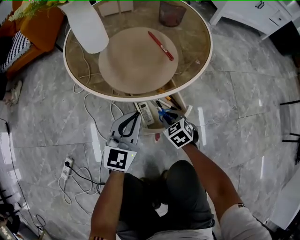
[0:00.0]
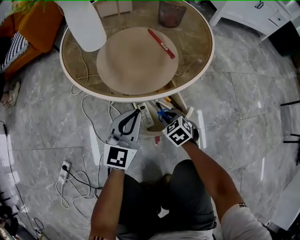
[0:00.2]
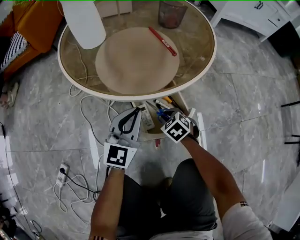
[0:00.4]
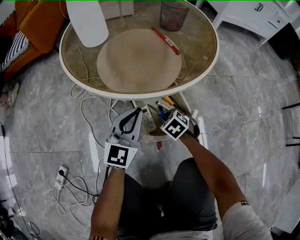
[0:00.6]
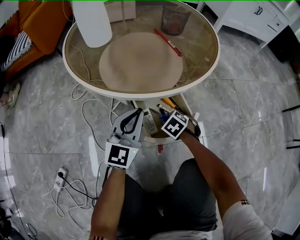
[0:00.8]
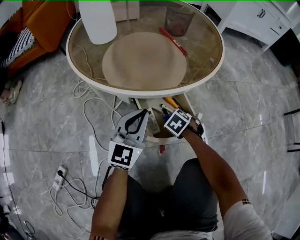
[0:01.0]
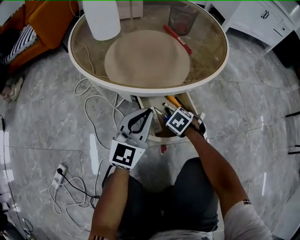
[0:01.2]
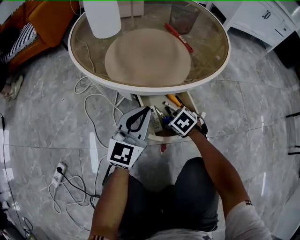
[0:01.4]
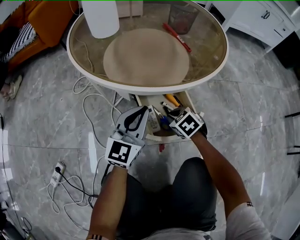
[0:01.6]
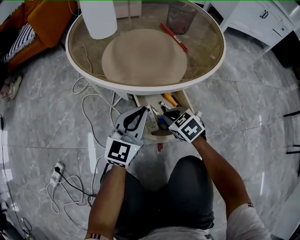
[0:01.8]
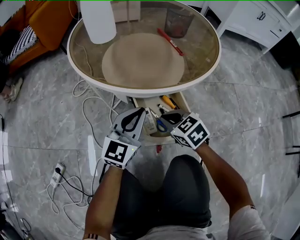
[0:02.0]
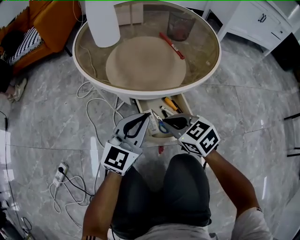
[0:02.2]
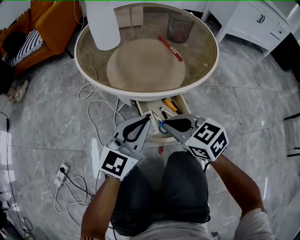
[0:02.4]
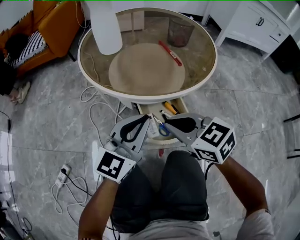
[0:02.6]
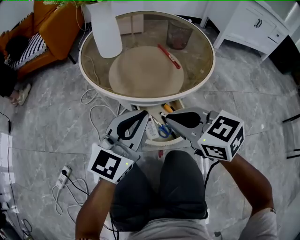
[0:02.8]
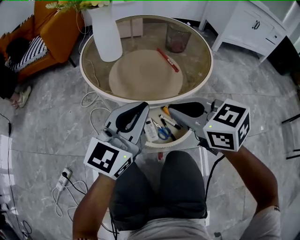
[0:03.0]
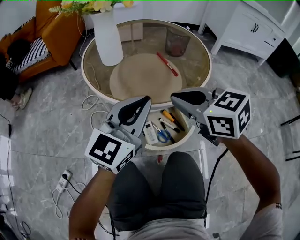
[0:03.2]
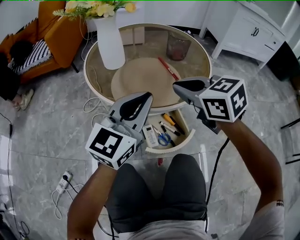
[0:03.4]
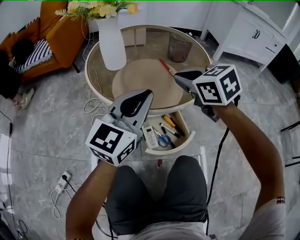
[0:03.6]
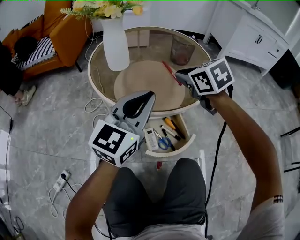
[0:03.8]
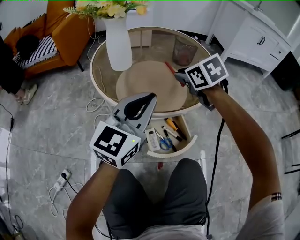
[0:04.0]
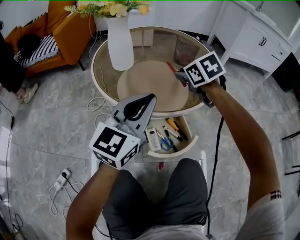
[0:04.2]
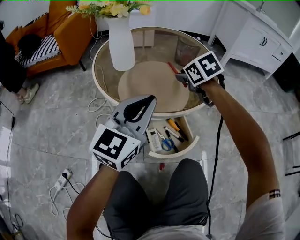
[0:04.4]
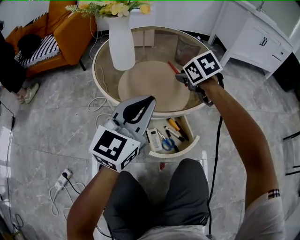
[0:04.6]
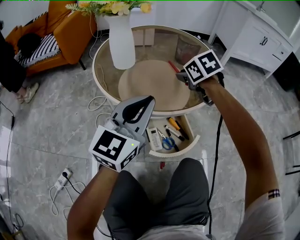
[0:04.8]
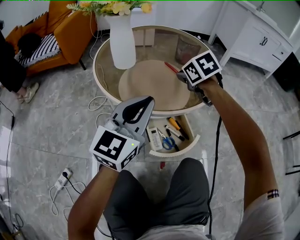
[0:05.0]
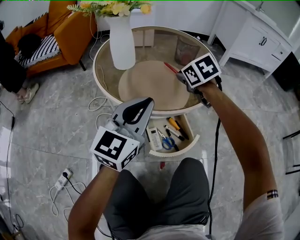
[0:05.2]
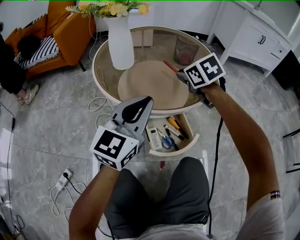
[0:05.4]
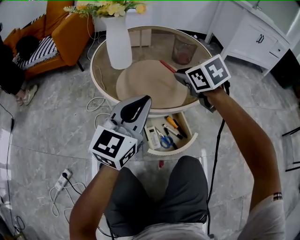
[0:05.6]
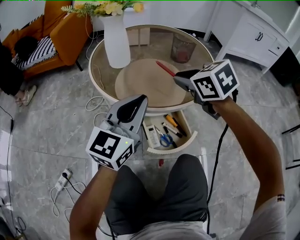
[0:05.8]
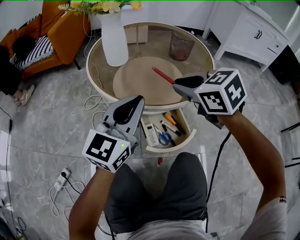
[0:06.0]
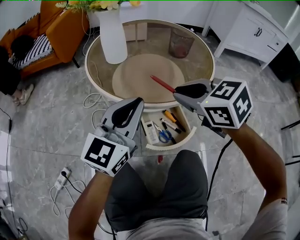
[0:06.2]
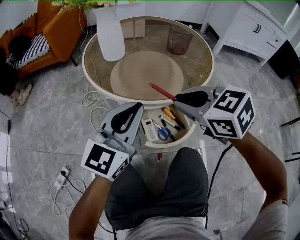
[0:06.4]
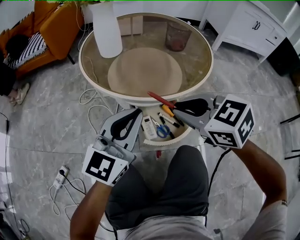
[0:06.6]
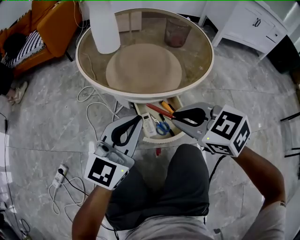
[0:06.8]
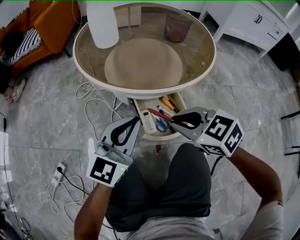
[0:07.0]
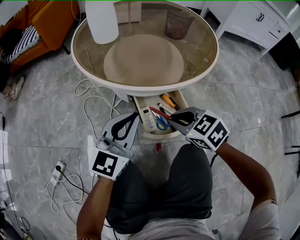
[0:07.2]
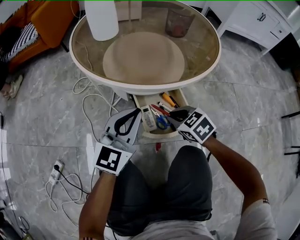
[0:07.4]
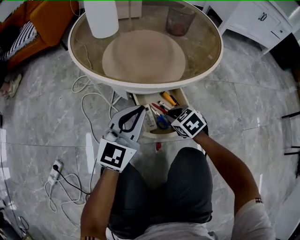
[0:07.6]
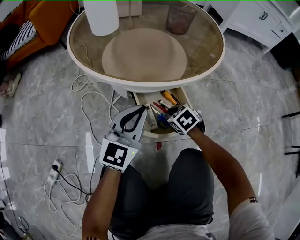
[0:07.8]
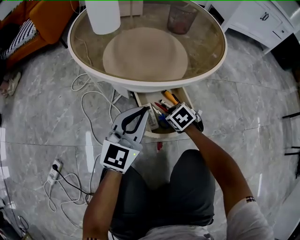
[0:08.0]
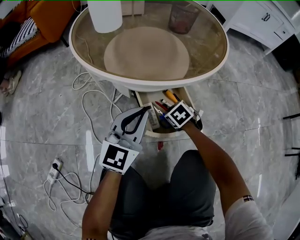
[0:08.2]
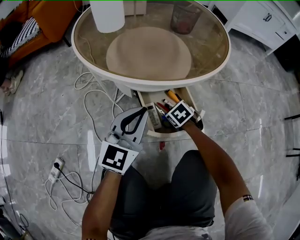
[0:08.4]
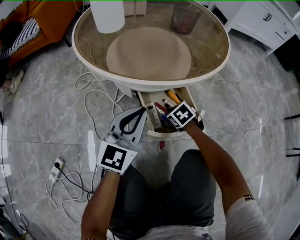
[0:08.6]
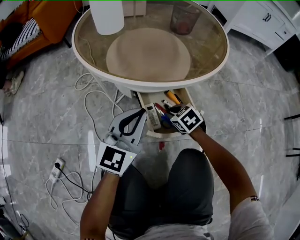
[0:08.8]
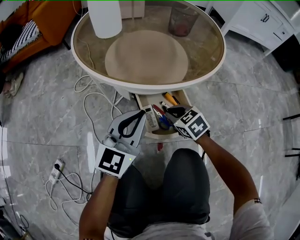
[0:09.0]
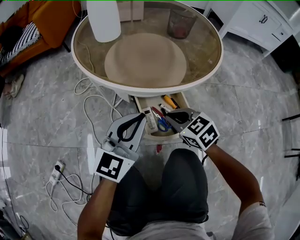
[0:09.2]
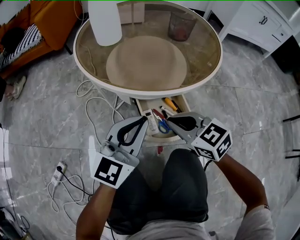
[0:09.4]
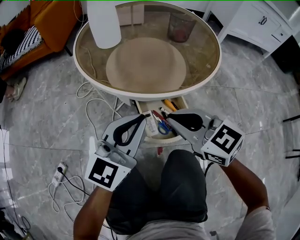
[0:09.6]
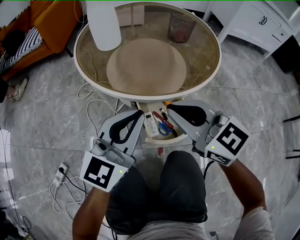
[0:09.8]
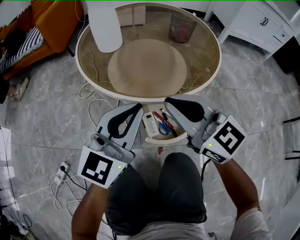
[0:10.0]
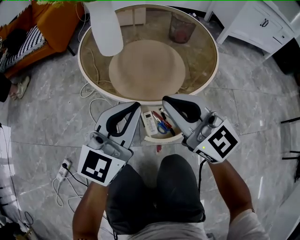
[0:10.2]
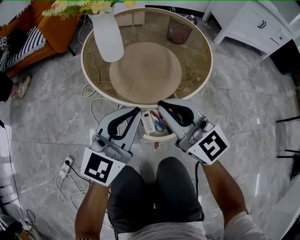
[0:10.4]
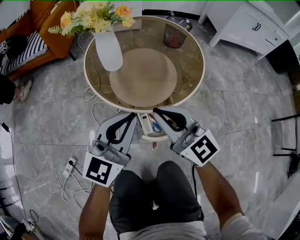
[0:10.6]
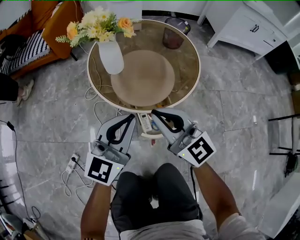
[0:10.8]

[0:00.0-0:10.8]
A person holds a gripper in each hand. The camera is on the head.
0:00.0 to 0:01.6: Both grippers travel together downward, about 5 cm.
0:01.6 to 0:03.0: The left gripper shifts about 20 cm upward. Meanwhile the right gripper goes some 35 cm upward, and tips its fingers upward by about 30 degrees.
0:03.0 to 0:04.6: The right gripper is displaced forward by about 20 cm, swivels some 30 degrees, and opens its fingers.
0:04.6 to 0:06.2: The right gripper is displaced backward and upward by approximately 20 cm, and turns by roughly 20 degrees.
0:06.2 to 0:07.8: The left gripper heads downward, covering roughly 20 cm, while the right gripper is displaced downward by about 35 cm, and turns by about 30 degrees.
0:07.8 to 0:09.2: The left gripper ends up some 5 cm from where it was, while the right gripper travels upward by some 15 cm, and turns by approximately 20 degrees.
0:09.2 to 0:10.8: The grippers both shift upward by approximately 30 cm. The right gripper points its fingers approximately 40 degrees further upward.

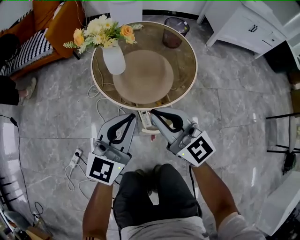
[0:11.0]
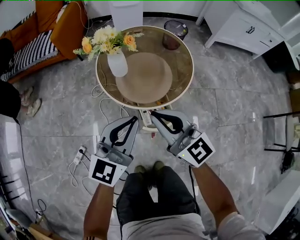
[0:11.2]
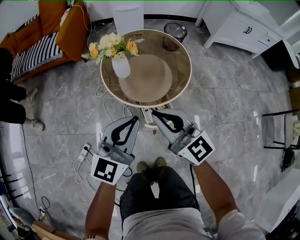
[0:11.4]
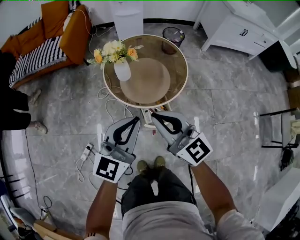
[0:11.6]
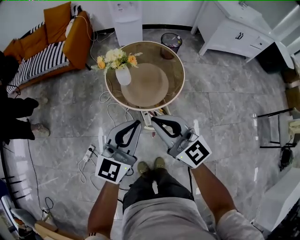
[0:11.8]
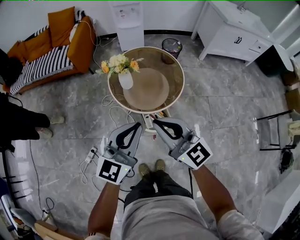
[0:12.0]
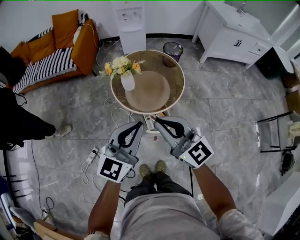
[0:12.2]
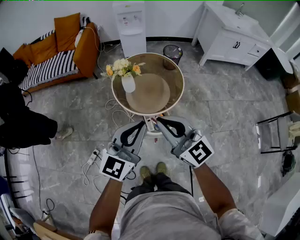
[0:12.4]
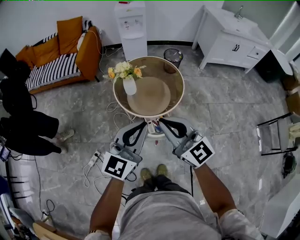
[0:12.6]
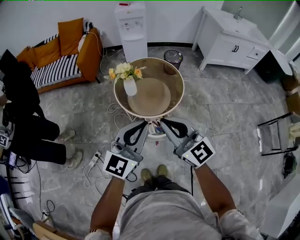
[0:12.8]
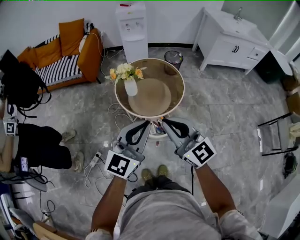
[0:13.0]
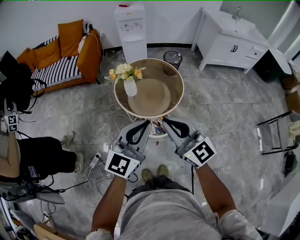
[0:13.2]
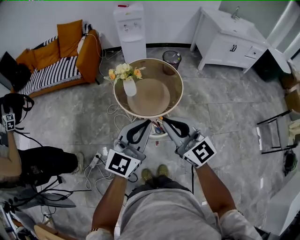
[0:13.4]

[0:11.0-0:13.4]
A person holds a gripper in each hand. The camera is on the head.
0:11.0 to 0:12.2: The grippers both shift upward by approximately 25 cm.
0:12.2 to 0:13.4: The left gripper changes place by approximately 5 cm.

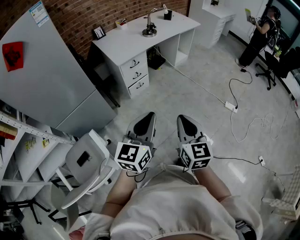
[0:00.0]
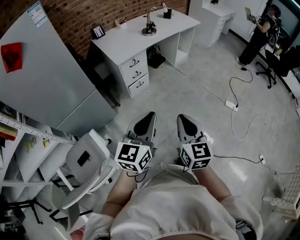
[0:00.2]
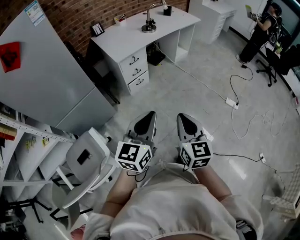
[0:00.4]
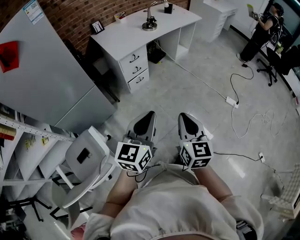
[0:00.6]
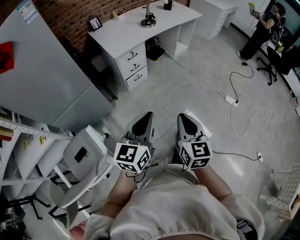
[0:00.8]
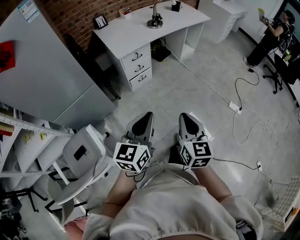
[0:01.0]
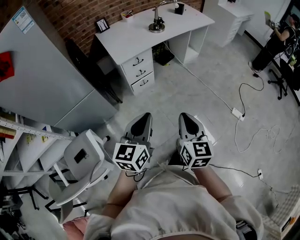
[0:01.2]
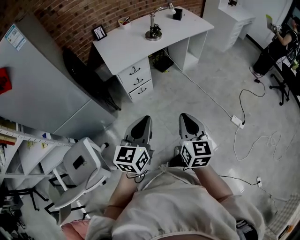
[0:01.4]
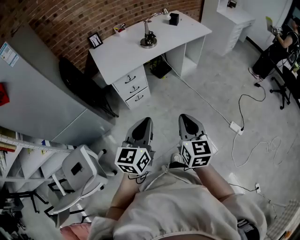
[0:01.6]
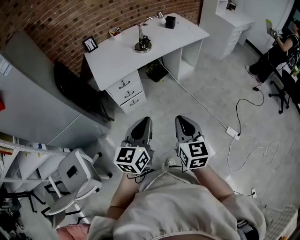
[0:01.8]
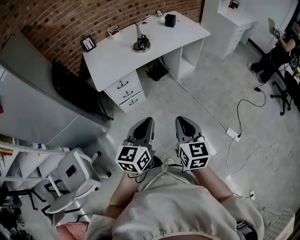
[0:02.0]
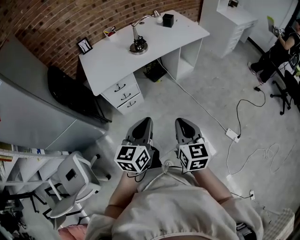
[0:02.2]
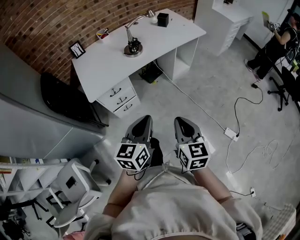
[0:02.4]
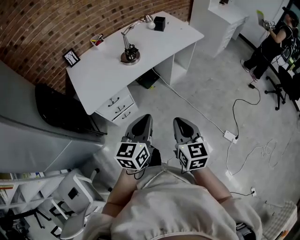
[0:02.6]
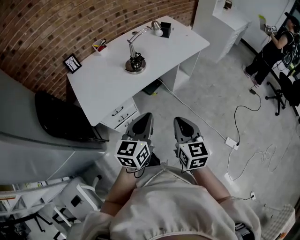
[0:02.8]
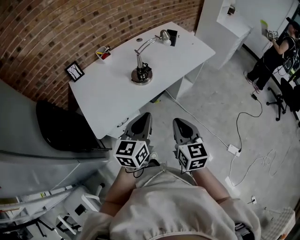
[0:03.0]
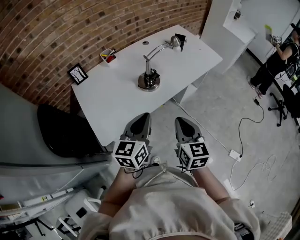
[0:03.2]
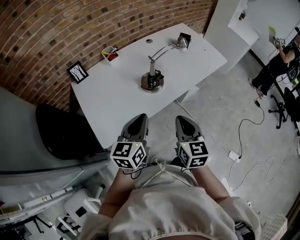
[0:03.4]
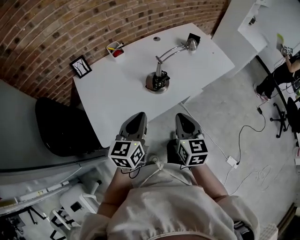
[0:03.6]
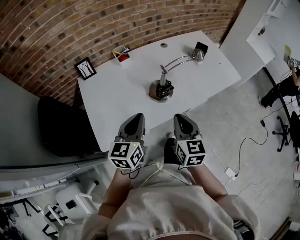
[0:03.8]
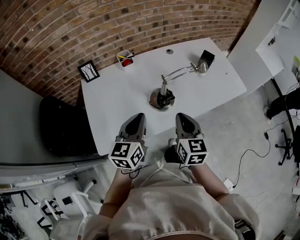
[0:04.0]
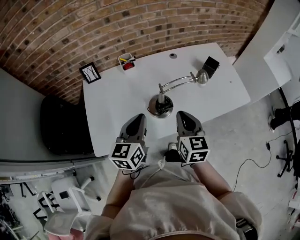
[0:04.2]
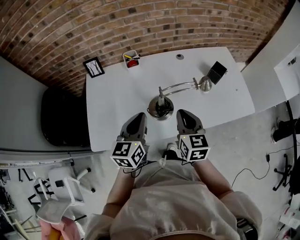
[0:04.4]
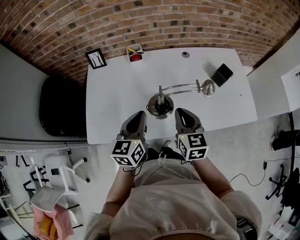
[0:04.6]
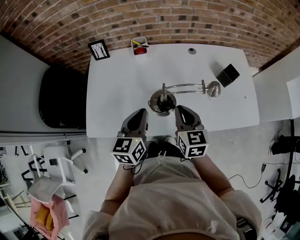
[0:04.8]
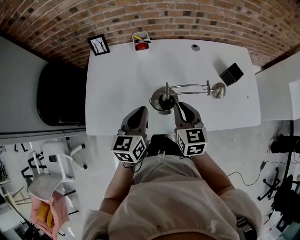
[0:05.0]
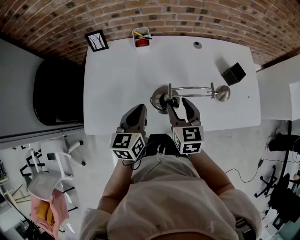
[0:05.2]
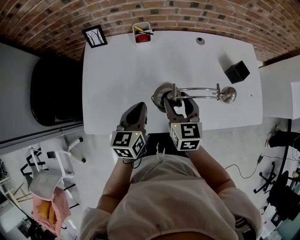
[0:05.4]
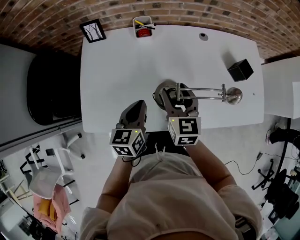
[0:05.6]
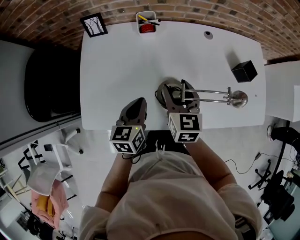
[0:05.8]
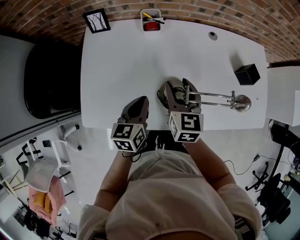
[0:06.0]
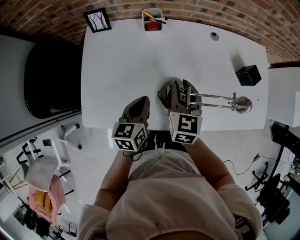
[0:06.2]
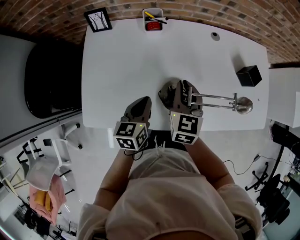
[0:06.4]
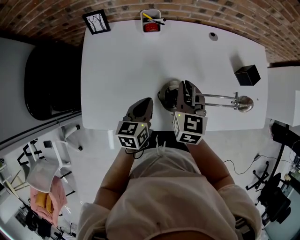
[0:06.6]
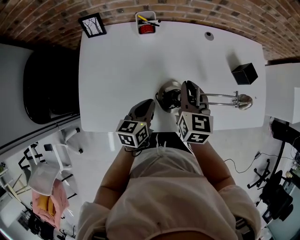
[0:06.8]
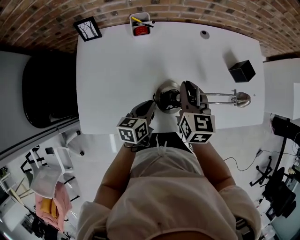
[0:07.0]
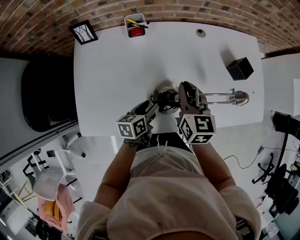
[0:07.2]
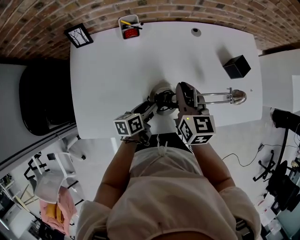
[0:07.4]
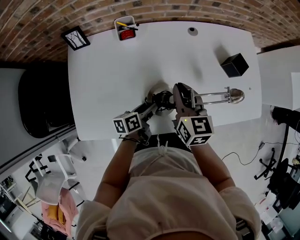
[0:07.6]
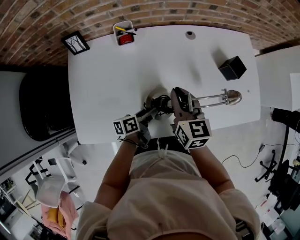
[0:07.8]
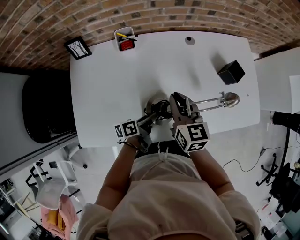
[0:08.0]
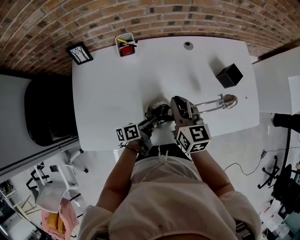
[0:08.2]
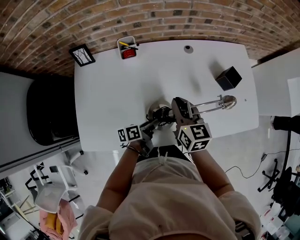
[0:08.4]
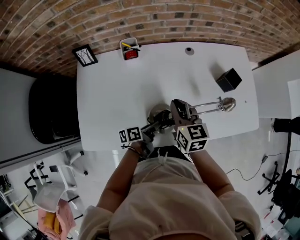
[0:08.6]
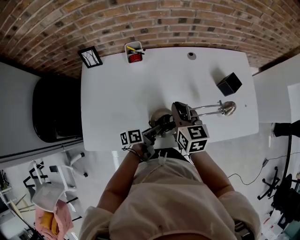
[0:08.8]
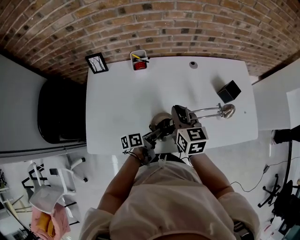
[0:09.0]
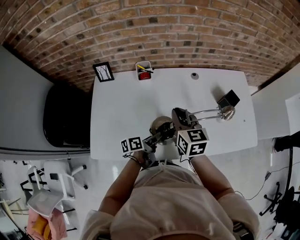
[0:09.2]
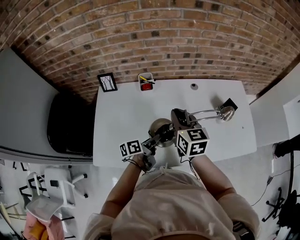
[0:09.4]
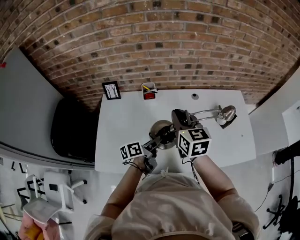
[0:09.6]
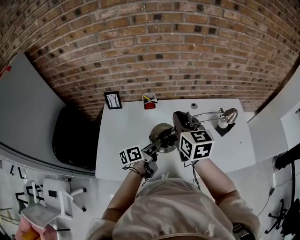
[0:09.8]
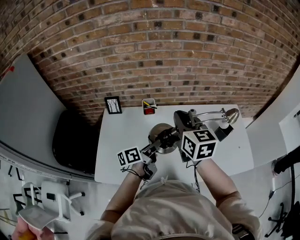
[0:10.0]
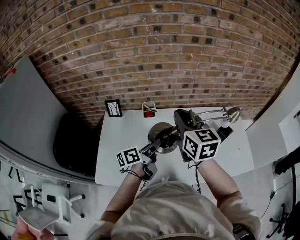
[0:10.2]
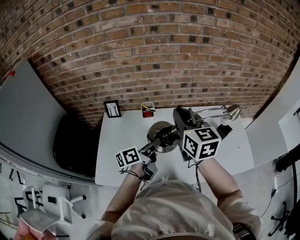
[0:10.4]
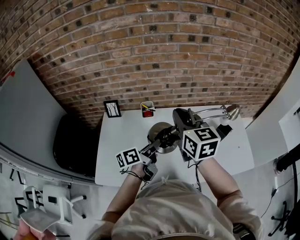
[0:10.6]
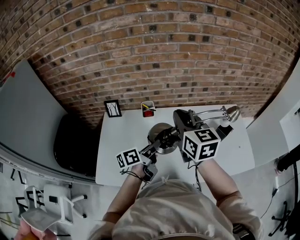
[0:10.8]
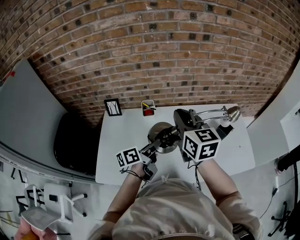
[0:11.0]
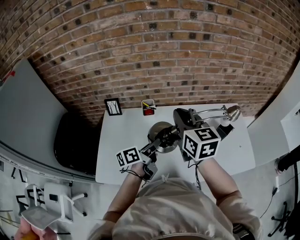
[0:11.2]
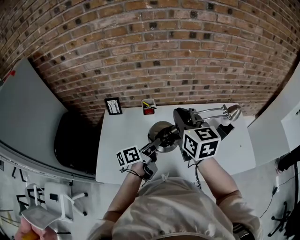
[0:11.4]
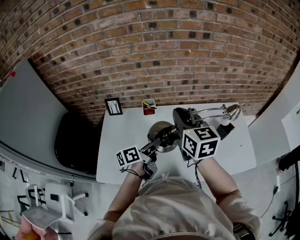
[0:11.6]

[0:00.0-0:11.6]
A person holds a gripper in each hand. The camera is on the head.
0:00.0 to 0:01.4: The two grippers go about 20 cm forward.
0:01.4 to 0:02.8: Both grippers travel together forward, approximately 35 cm.
0:02.8 to 0:04.4: The left gripper changes place by some 35 cm, and changes its angle by roughly 30 degrees, while the right gripper changes place by some 40 cm, and turns by some 20 degrees.
0:04.4 to 0:05.8: The right gripper goes about 15 cm forward, to the left and downward, and opens. The left gripper moves downward, forward and to the left, roughly 15 cm, and turns by about 20 degrees.
0:05.8 to 0:07.2: The right gripper heads to the right, covering roughly 5 cm, and closes up; the left gripper goes about 10 cm downward and to the right, rotates roughly 30 degrees, and opens its fingers.
0:07.2 to 0:08.8: The left gripper heads to the right, covering some 5 cm, and swivels approximately 30 degrees.
0:08.8 to 0:10.2: Both grippers travel together upward, some 25 cm. The left gripper turns by some 30 degrees.
0:10.2 to 0:11.6: Both grippers stay about where they are.
